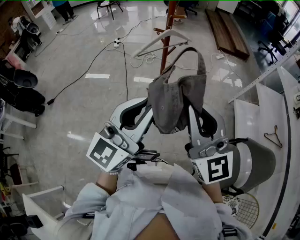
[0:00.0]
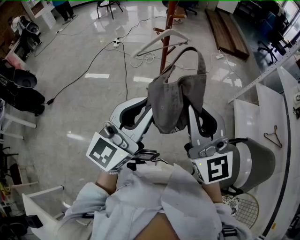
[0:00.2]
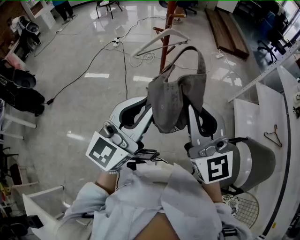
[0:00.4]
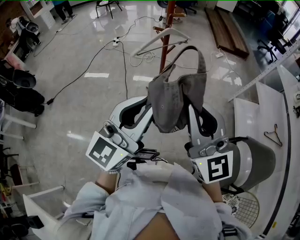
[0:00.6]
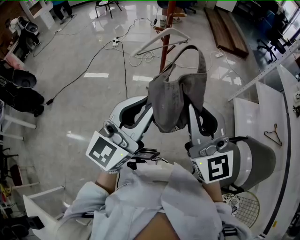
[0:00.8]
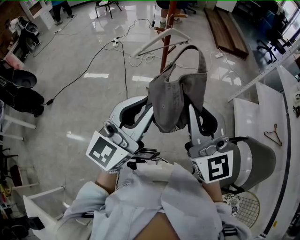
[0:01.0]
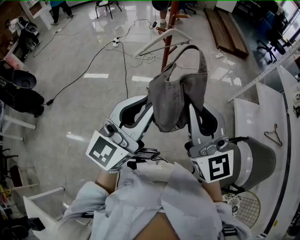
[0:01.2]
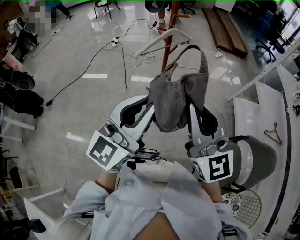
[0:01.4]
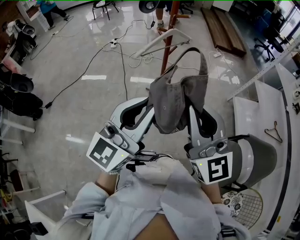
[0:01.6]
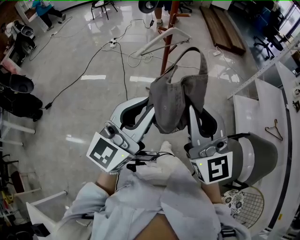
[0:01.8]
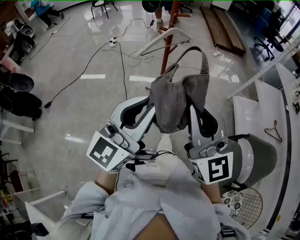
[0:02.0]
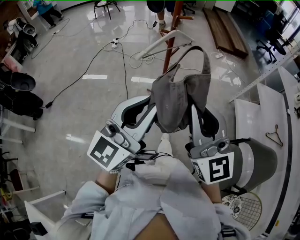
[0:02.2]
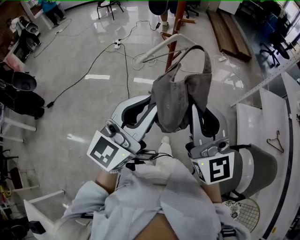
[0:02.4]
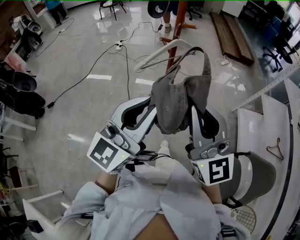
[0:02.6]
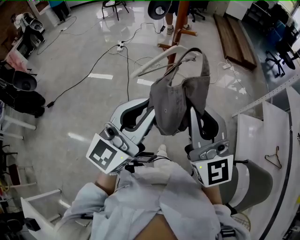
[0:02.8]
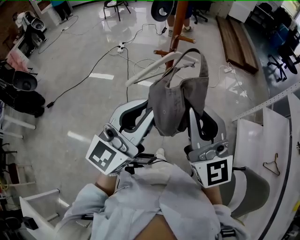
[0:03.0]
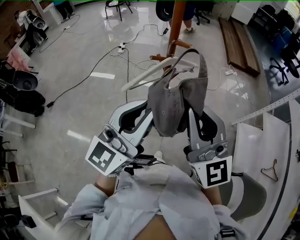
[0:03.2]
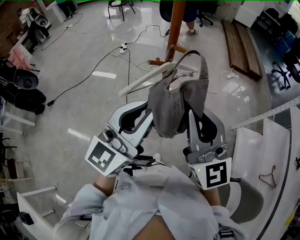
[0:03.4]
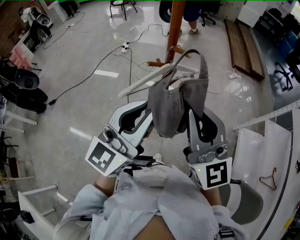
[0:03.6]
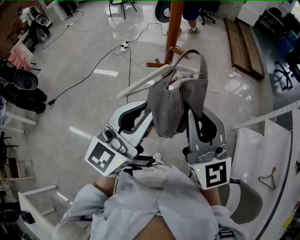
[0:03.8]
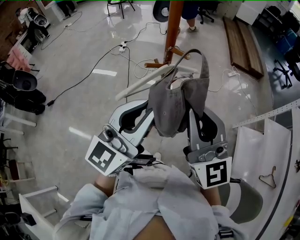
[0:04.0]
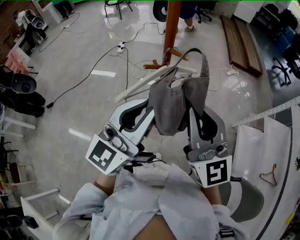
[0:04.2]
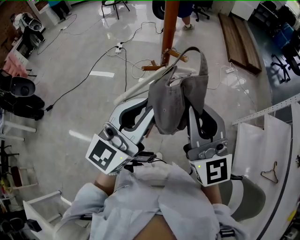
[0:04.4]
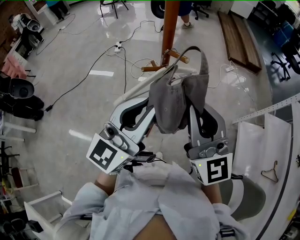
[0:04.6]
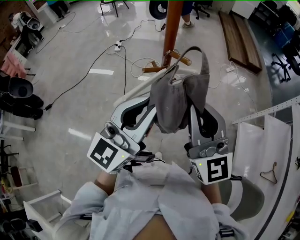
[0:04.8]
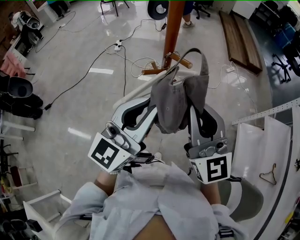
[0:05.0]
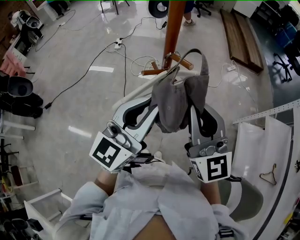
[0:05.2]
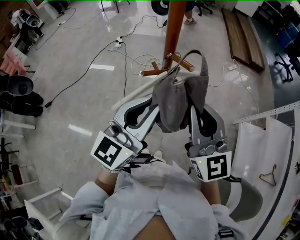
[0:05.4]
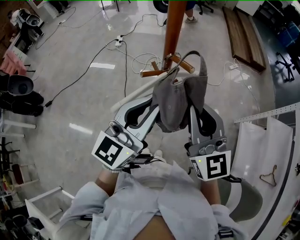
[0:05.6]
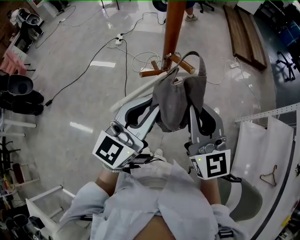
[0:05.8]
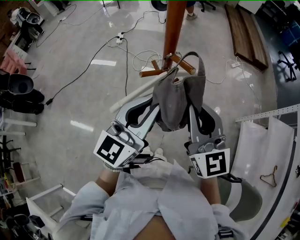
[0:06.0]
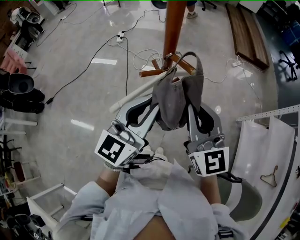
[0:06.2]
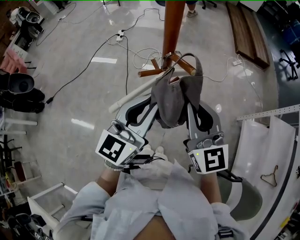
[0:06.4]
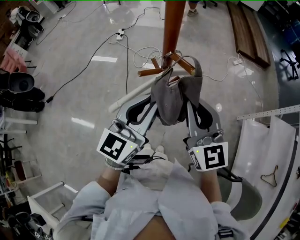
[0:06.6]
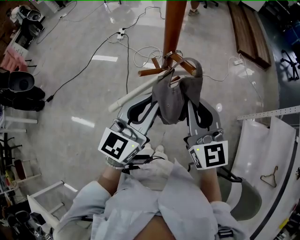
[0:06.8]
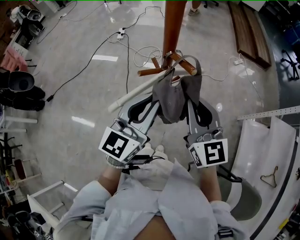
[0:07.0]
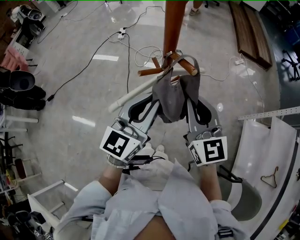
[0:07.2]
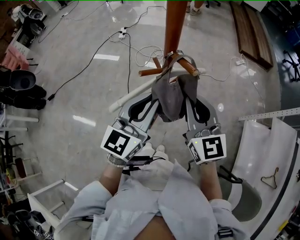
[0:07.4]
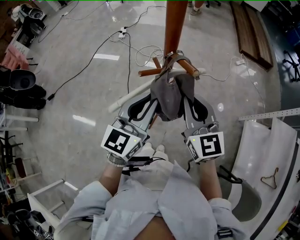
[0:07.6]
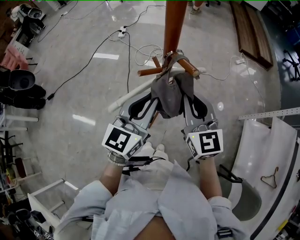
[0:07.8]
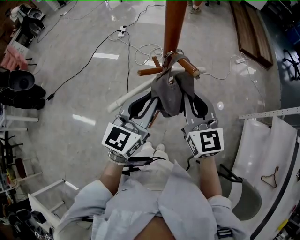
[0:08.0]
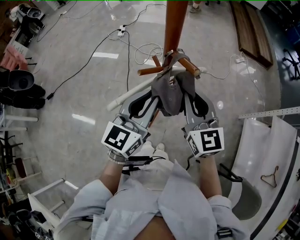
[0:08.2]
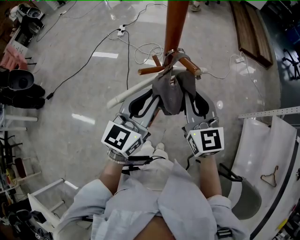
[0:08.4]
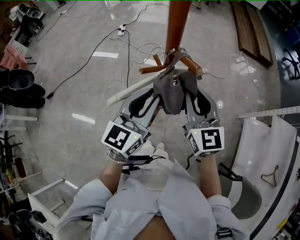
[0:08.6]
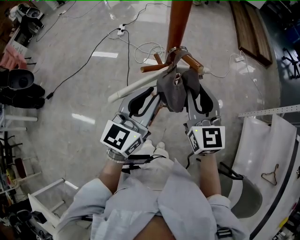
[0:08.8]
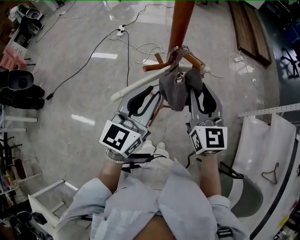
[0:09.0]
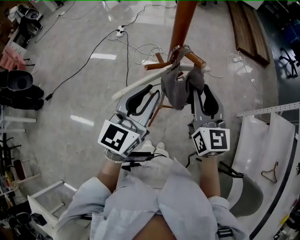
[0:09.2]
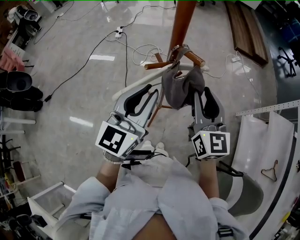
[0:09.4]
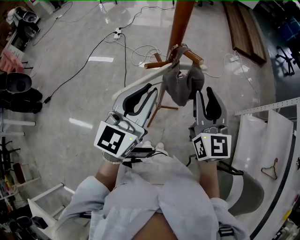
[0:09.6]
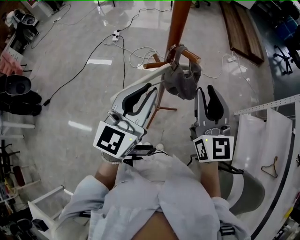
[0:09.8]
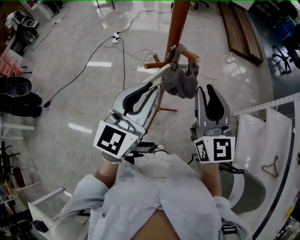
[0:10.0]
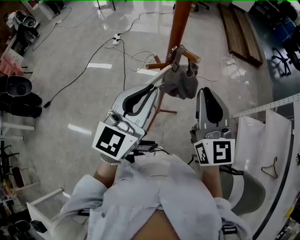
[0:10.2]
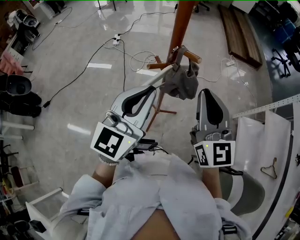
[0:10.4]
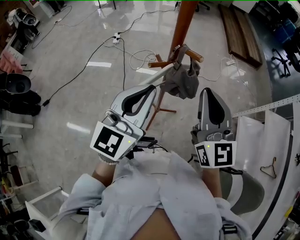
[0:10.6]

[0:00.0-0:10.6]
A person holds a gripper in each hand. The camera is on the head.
0:00.0 to 0:01.6: There are only small adjustments of the grippers.
0:01.6 to 0:03.0: The two grippers go roughly 20 cm forward.
0:03.0 to 0:04.6: The two grippers go roughly 10 cm forward.
0:04.6 to 0:06.0: Both grippers travel together forward and downward, some 10 cm.
0:06.0 to 0:07.6: Both grippers move downward, approximately 5 cm.
0:07.6 to 0:09.0: The right gripper opens up.
0:09.0 to 0:10.6: The left gripper goes some 5 cm upward. Meanwhile the right gripper goes approximately 10 cm upward and backward, and closes up.

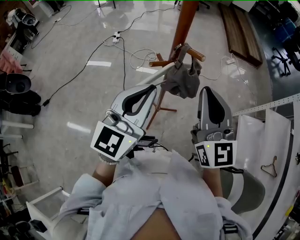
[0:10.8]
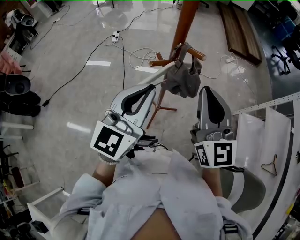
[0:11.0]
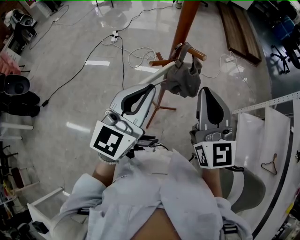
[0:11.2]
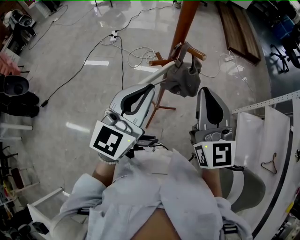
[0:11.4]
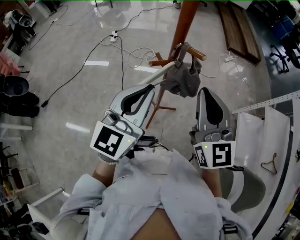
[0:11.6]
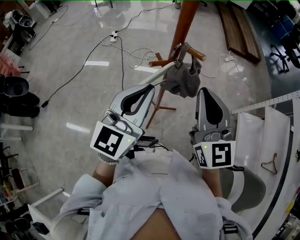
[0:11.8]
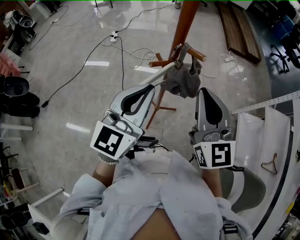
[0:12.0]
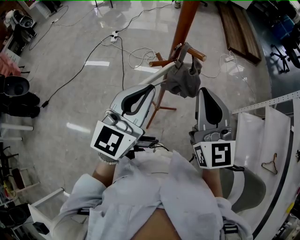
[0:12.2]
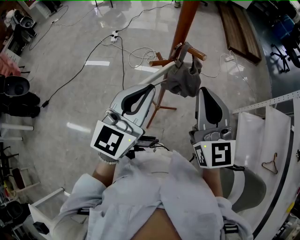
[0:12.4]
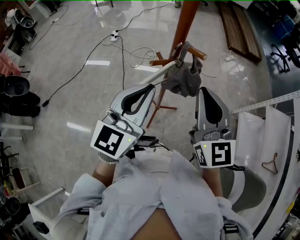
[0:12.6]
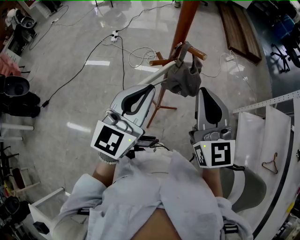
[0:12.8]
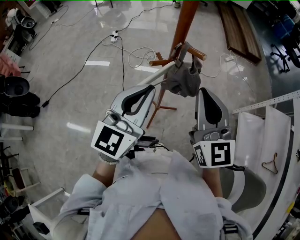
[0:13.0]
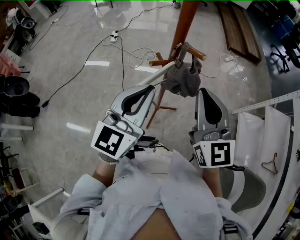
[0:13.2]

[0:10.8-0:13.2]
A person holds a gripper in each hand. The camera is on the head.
0:10.8 to 0:12.0: The grippers stay close to where they were, moving slightly.
0:12.0 to 0:13.2: Both grippers stay put.

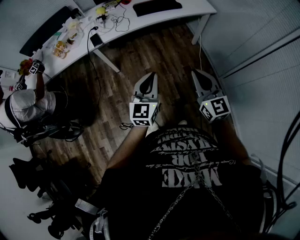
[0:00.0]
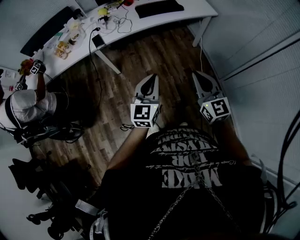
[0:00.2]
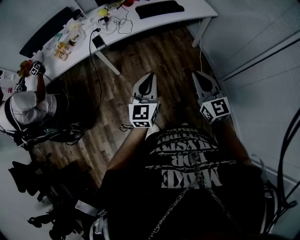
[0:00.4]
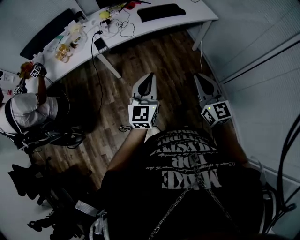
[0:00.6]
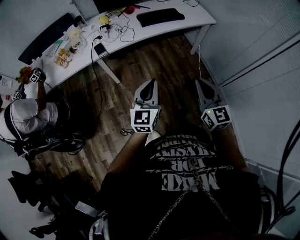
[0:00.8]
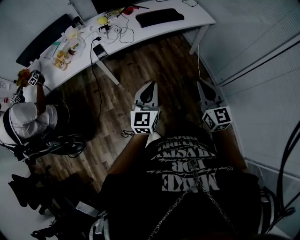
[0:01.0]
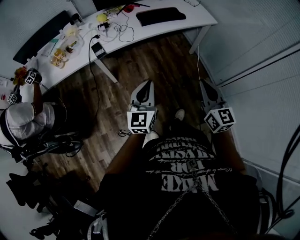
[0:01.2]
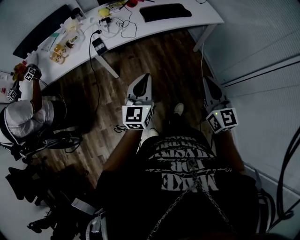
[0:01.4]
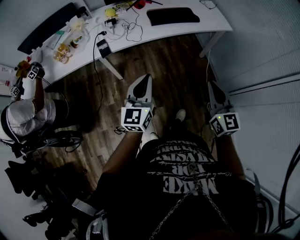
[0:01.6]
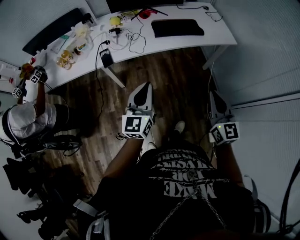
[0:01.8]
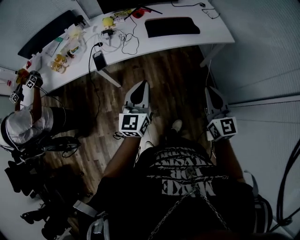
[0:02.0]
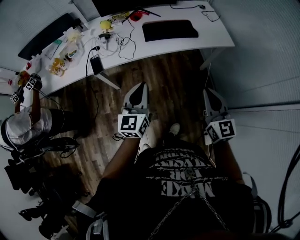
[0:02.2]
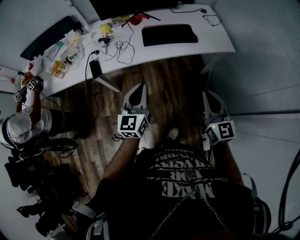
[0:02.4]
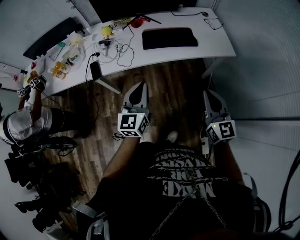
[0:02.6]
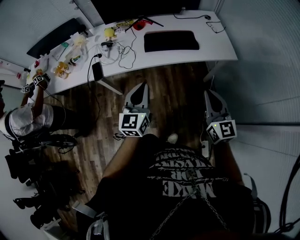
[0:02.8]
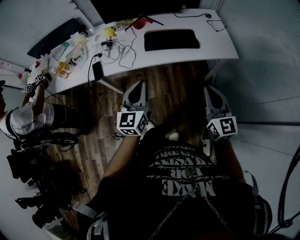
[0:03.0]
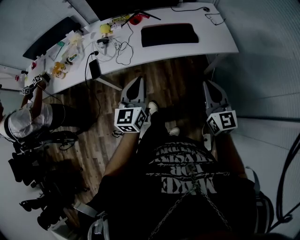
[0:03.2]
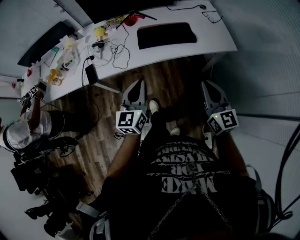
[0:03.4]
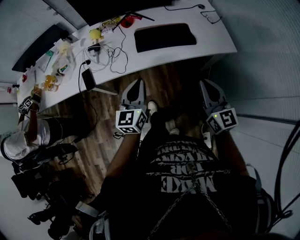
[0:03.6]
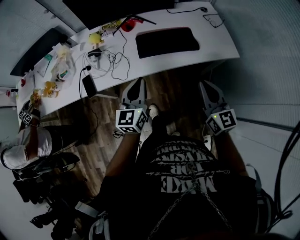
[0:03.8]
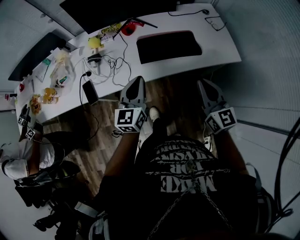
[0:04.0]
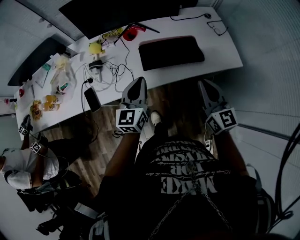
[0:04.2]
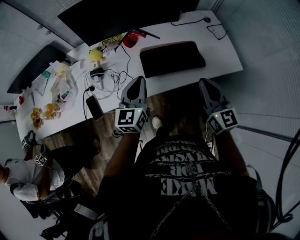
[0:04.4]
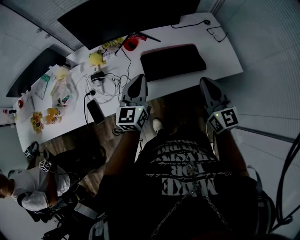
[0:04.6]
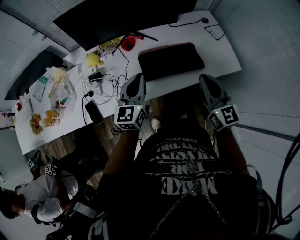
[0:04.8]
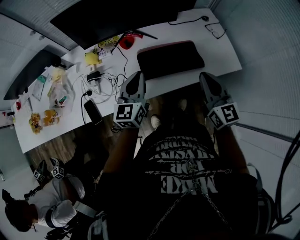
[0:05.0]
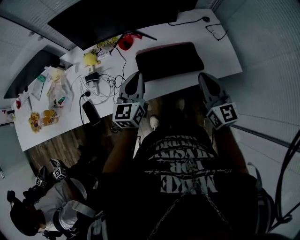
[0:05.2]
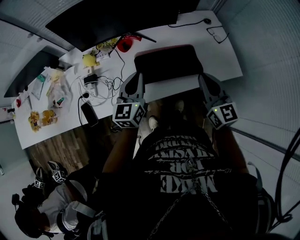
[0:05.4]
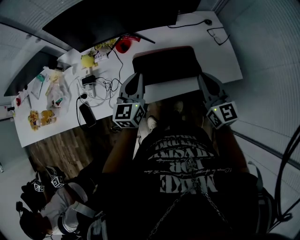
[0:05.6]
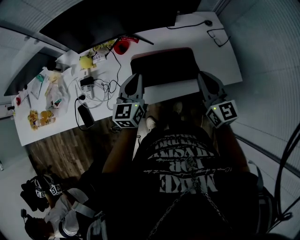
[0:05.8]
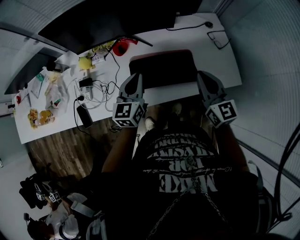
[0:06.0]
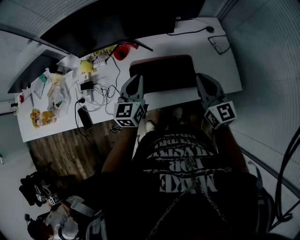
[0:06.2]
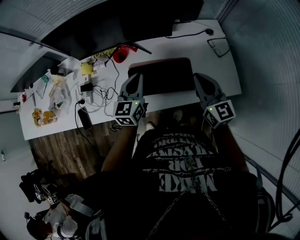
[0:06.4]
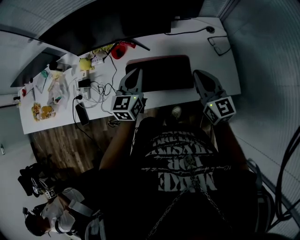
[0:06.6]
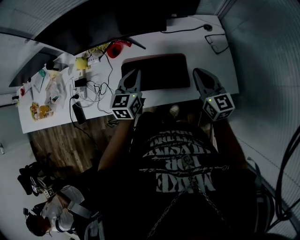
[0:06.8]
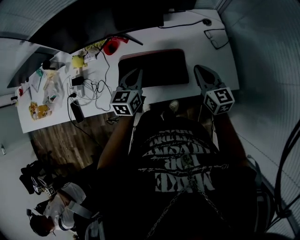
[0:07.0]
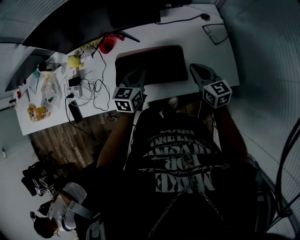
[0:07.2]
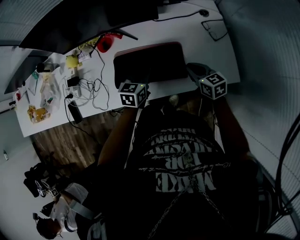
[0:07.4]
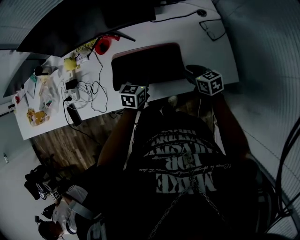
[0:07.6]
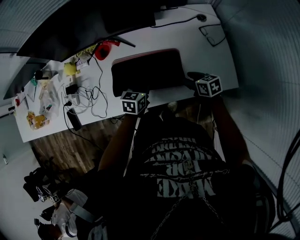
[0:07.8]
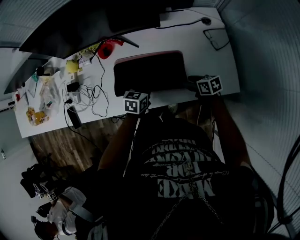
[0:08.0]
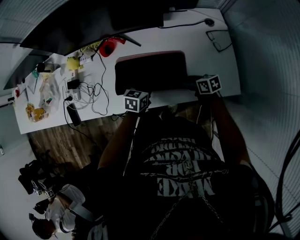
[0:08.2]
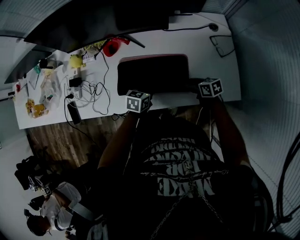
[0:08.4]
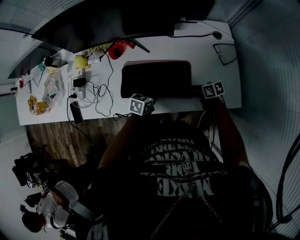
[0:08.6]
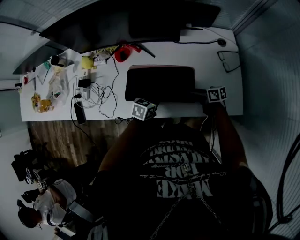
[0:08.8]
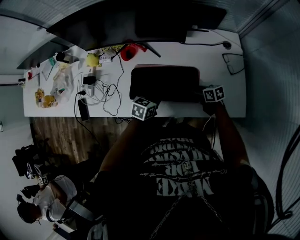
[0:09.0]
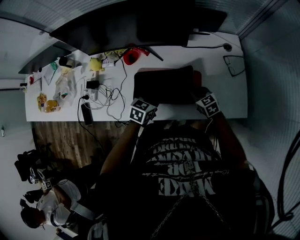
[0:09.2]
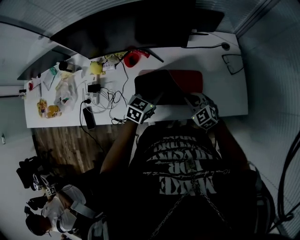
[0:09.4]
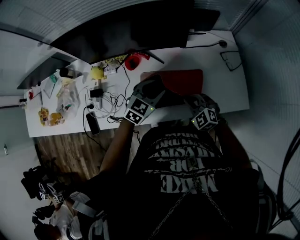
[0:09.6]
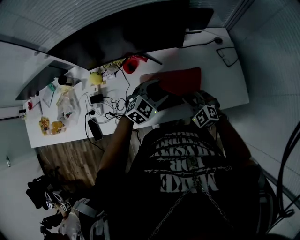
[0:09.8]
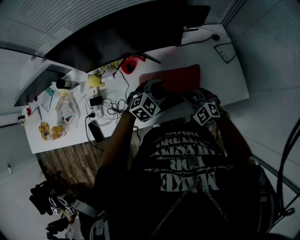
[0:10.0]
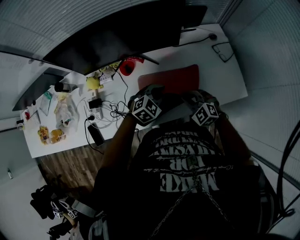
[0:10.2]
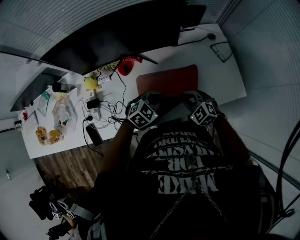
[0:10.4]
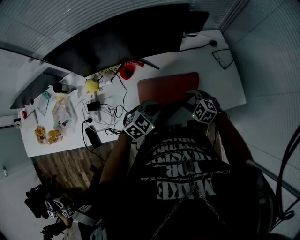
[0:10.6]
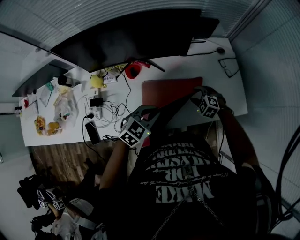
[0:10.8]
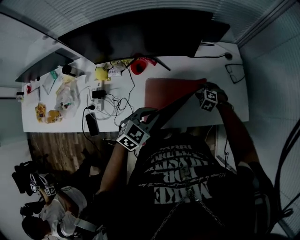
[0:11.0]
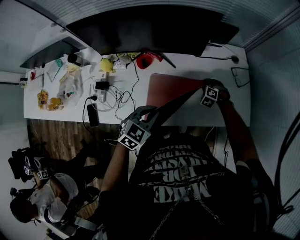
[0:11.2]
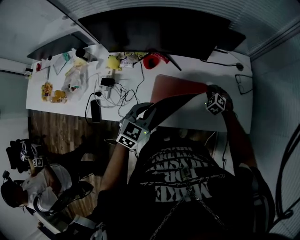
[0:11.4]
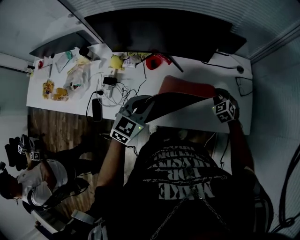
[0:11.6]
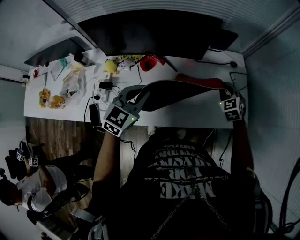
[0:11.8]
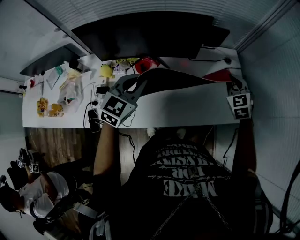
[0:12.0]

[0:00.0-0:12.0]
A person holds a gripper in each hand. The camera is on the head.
0:00.0 to 0:01.6: The left gripper heads forward and to the left, covering about 15 cm. The right gripper travels forward by some 10 cm.
0:01.6 to 0:03.0: Both grippers move forward and to the right, about 25 cm.
0:03.0 to 0:04.4: Both grippers travel together forward, roughly 25 cm.
0:04.4 to 0:06.0: Both grippers travel together forward and to the right, roughly 15 cm.
0:06.0 to 0:07.6: The left gripper is displaced downward and to the right by roughly 20 cm, and swivels roughly 30 degrees; the right gripper heads downward, covering about 25 cm, points its fingers about 30 degrees further downward, and opens its fingers.
0:07.6 to 0:09.0: The right gripper moves downward, some 10 cm.
0:09.0 to 0:10.4: The left gripper moves upward, approximately 5 cm, rotates around the line of its fingers by some 50 degrees, clockwise from behind, and opens, then closes once more; the right gripper heads upward, to the left and backward, covering roughly 20 cm, twists roughly 60 degrees counterclockwise, seen from behind, and closes its fingers.
0:10.4 to 0:12.0: The right gripper goes approximately 25 cm upward, forward and to the right, swivels some 30 degrees, and opens, then closes again. The left gripper shifts roughly 25 cm upward and to the left, and turns by roughly 30 degrees.
